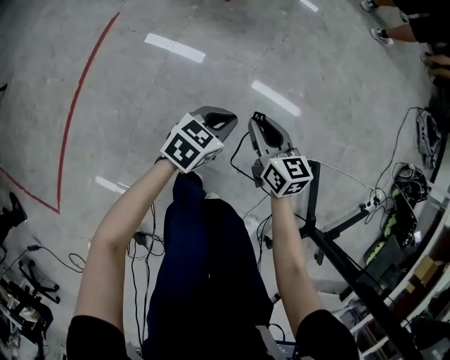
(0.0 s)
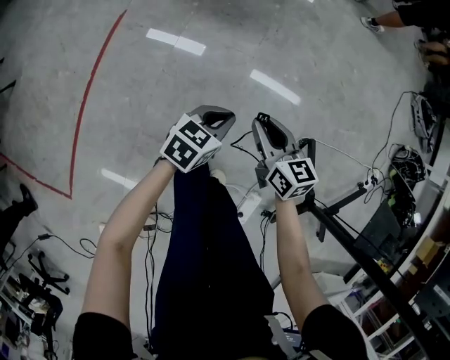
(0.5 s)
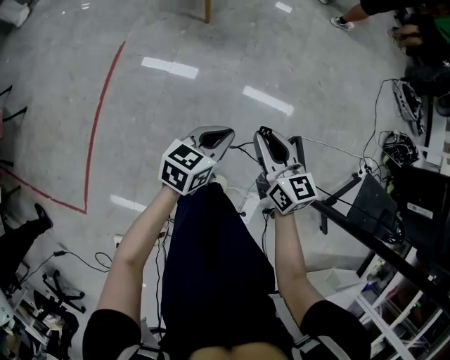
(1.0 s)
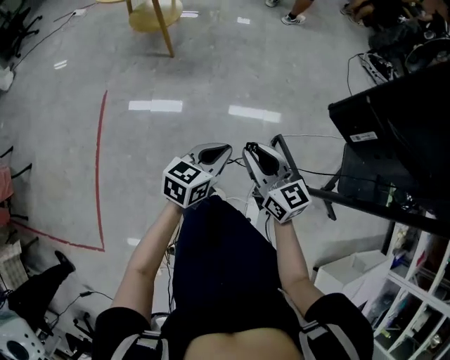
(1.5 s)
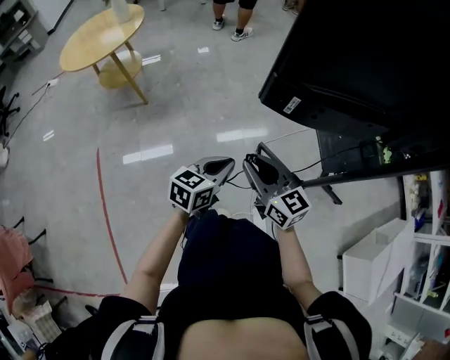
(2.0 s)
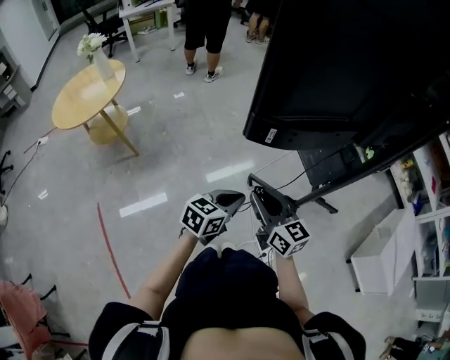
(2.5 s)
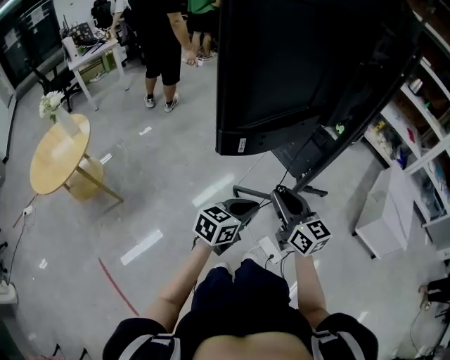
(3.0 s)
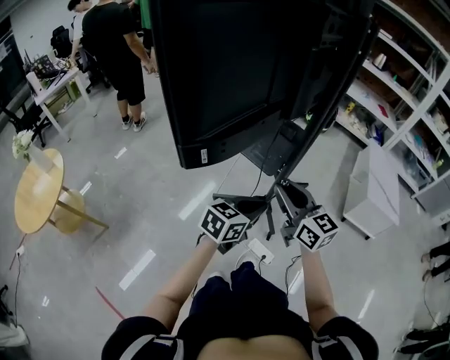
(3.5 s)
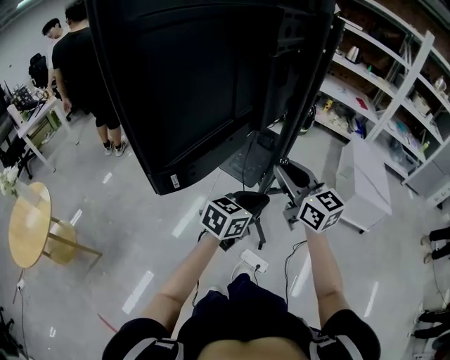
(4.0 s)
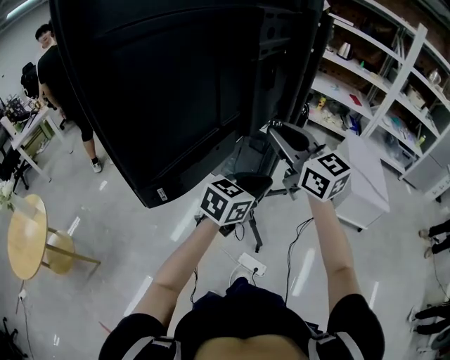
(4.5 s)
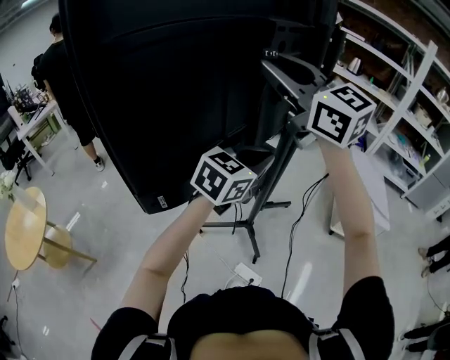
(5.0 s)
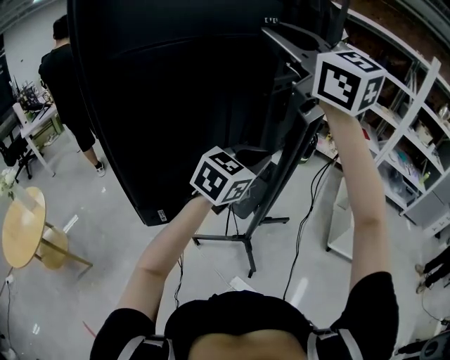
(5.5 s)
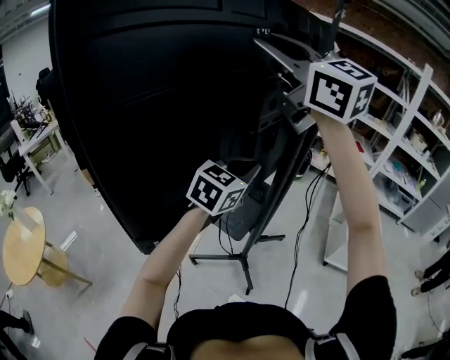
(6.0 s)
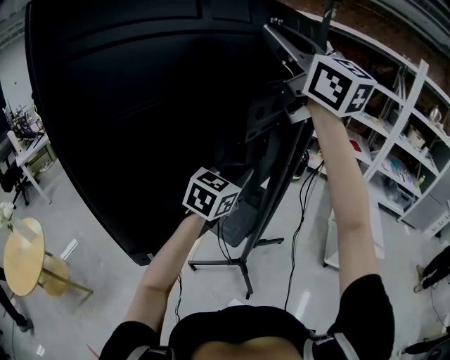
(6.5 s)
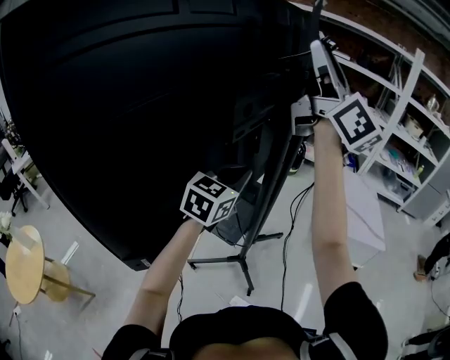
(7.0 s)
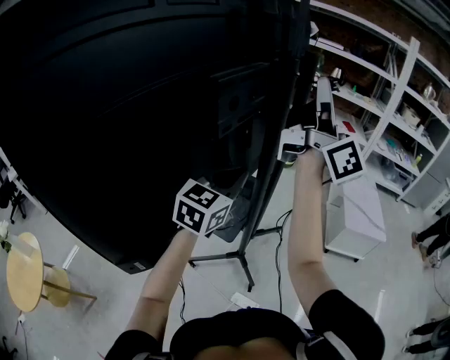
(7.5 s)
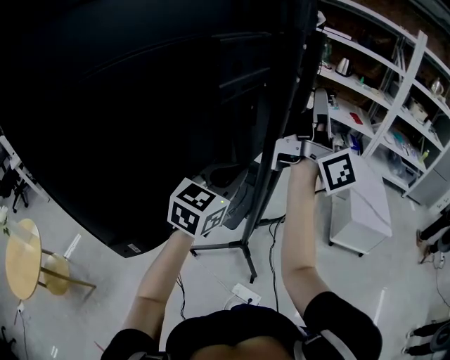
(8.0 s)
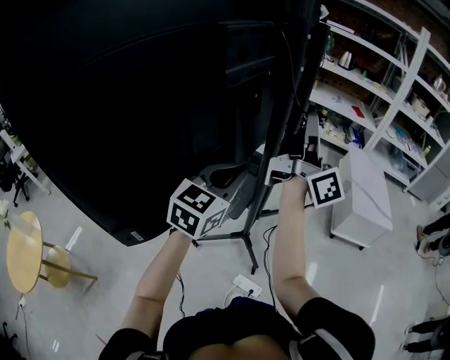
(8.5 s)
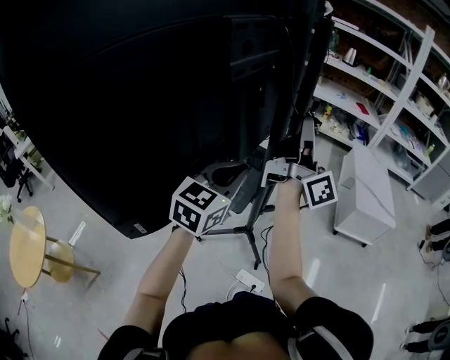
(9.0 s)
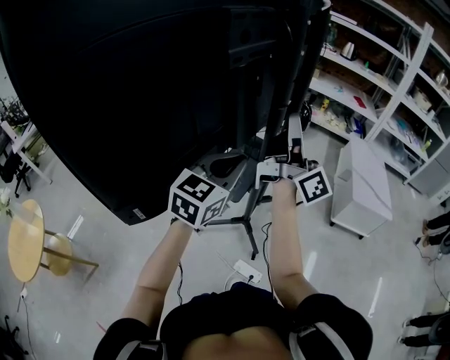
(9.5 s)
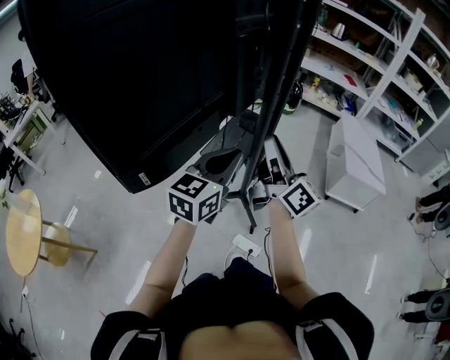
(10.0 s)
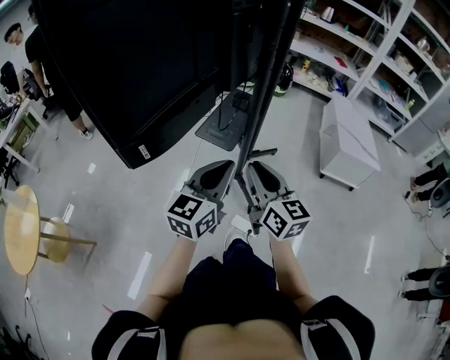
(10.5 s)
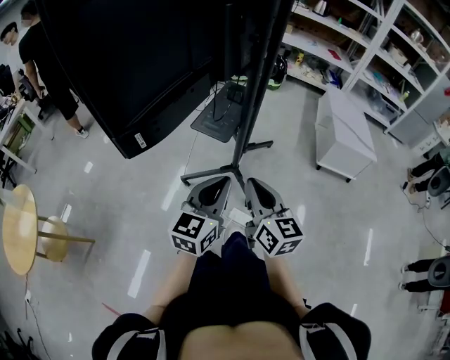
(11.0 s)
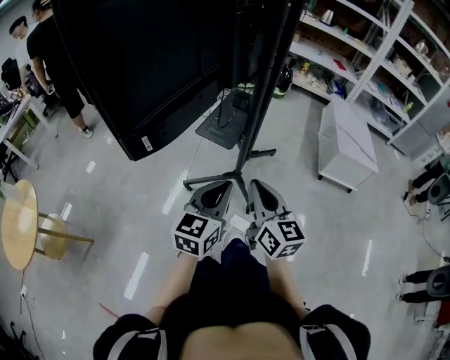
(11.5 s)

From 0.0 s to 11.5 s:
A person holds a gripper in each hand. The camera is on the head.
From 0.0 s to 2.0 s: The right gripper goes roughly 50 cm upward and backward, and rotates approximately 30 degrees; the left gripper moves upward and to the right, about 50 cm, and turns by roughly 30 degrees.
From 2.0 s to 4.0 s: The right gripper ends up roughly 35 cm from where it was, and rotates some 50 degrees; the left gripper moves approximately 35 cm, and rotates approximately 60 degrees.
From 4.0 s to 6.0 s: The right gripper travels upward by roughly 40 cm, and turns by approximately 30 degrees; the left gripper is displaced upward and forward by about 30 cm, and changes its angle by roughly 30 degrees.
From 6.0 s to 7.5 s: The right gripper moves to the right, some 25 cm, and tilts its fingers some 40 degrees upward.
From 7.5 s to 9.5 s: The right gripper shifts approximately 20 cm downward; the left gripper goes roughly 10 cm backward and downward.
From 9.5 s to 11.5 s: Both grippers move backward and downward, approximately 30 cm. The right gripper points its fingers roughly 50 degrees further downward.

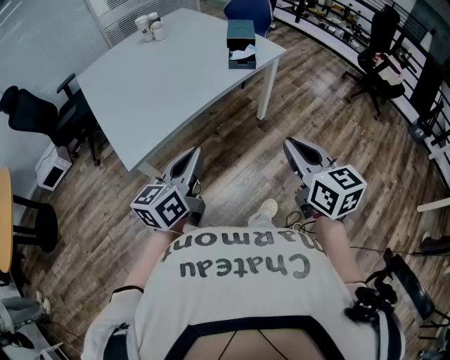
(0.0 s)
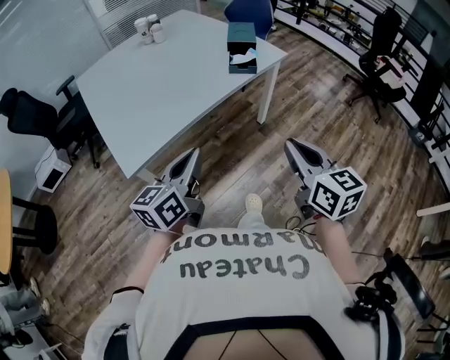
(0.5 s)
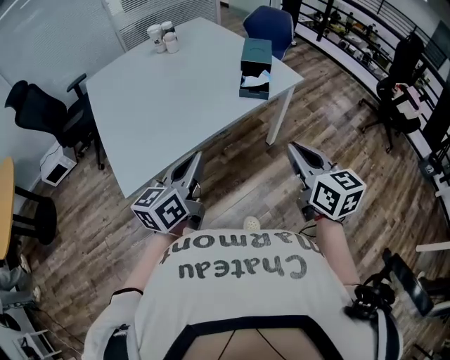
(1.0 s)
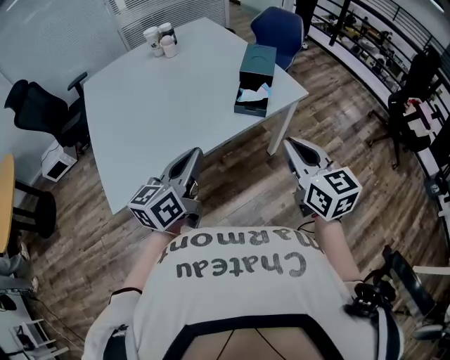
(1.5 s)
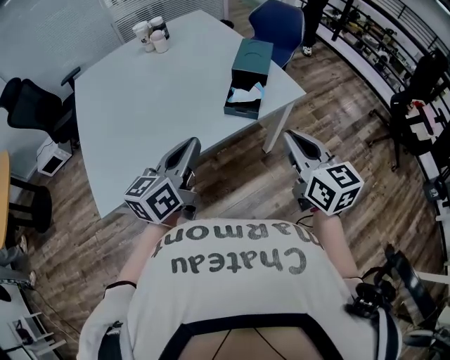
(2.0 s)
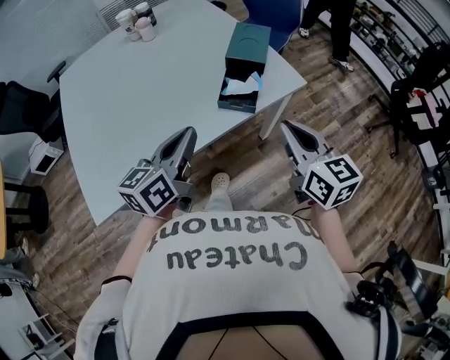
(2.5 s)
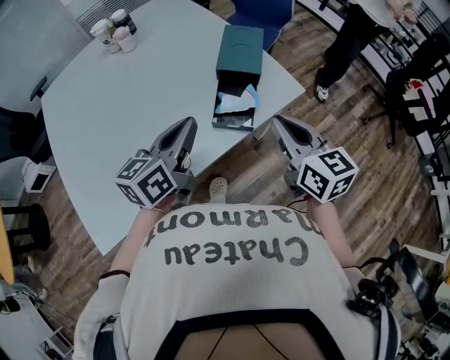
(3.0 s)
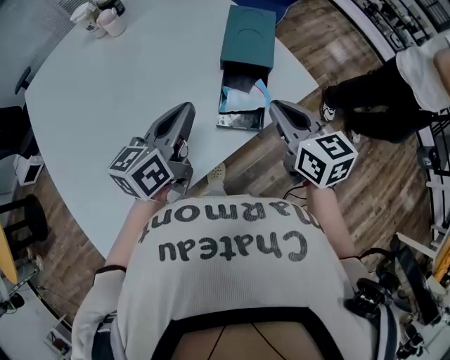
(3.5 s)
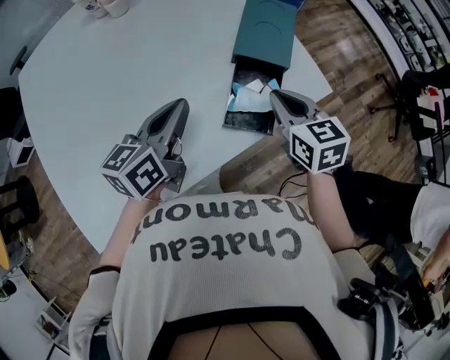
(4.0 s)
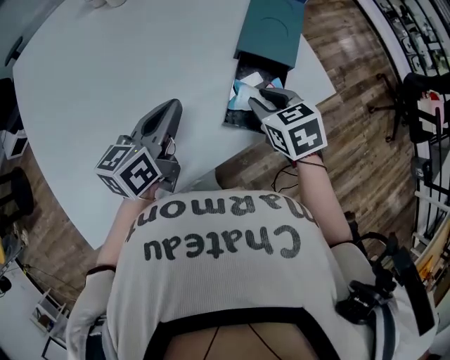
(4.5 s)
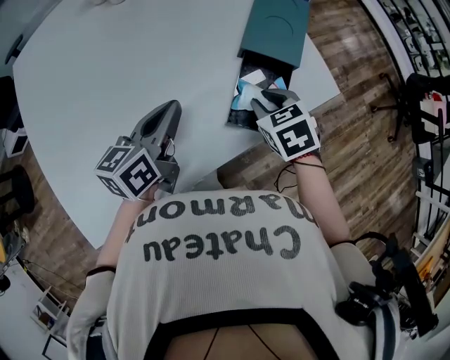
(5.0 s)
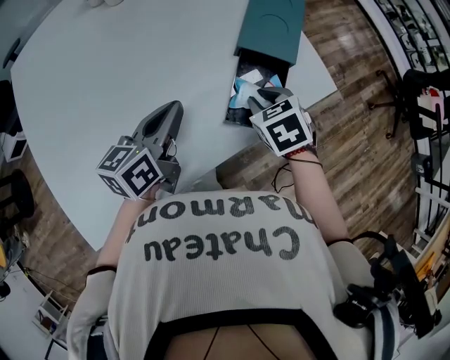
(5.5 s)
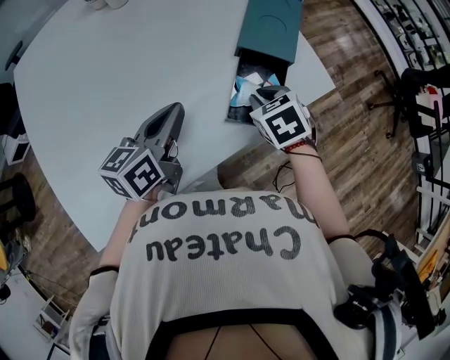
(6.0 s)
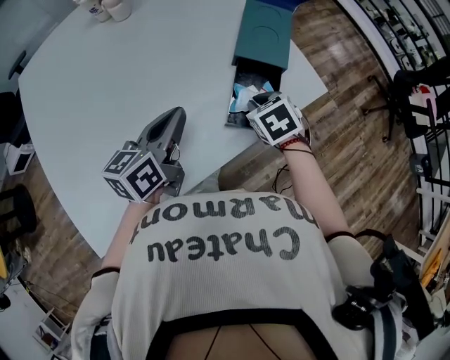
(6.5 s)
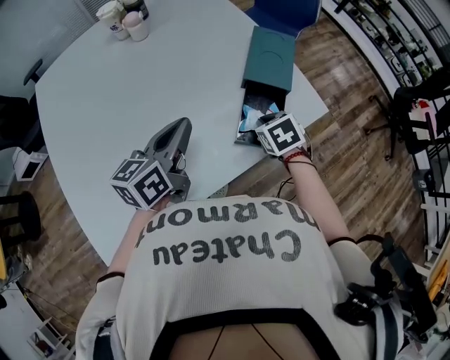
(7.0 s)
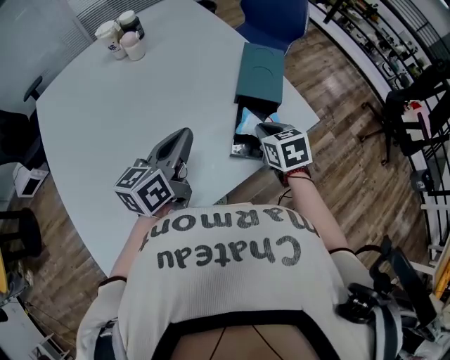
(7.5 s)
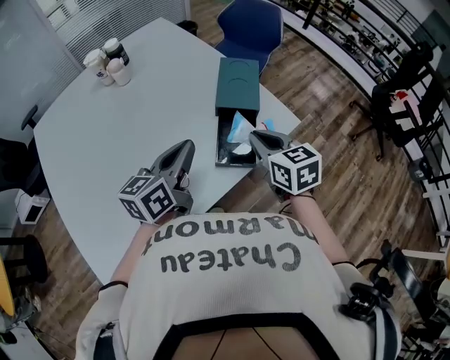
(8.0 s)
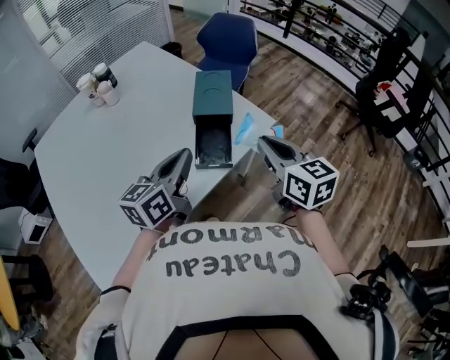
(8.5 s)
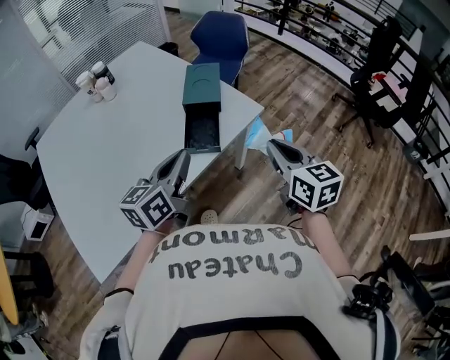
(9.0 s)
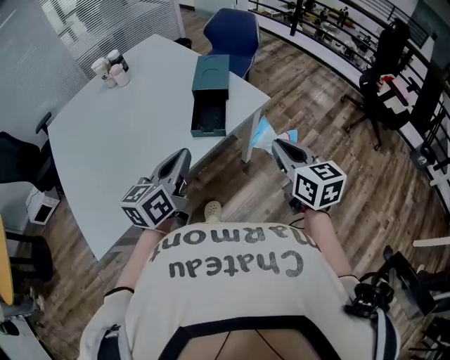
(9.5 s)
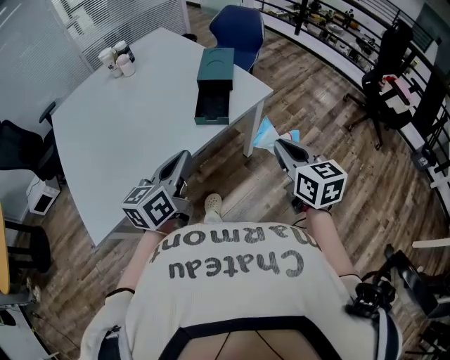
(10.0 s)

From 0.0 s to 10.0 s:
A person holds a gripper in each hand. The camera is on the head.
From 0.0 s to 2.0 s: Both grippers travel together forward, about 30 cm.
From 2.0 s to 4.0 s: The left gripper goes roughly 25 cm forward; the right gripper heads forward and downward, covering about 30 cm, and swivels roughly 20 degrees.
From 4.0 s to 6.0 s: The right gripper goes about 10 cm downward, and rotates about 30 degrees.
From 6.0 s to 8.0 s: The right gripper travels upward by approximately 15 cm, and points its fingers some 30 degrees further upward, while the left gripper goes roughly 10 cm upward and to the right.
From 8.0 s to 10.0 s: The left gripper travels backward by roughly 25 cm. The right gripper moves backward and to the right, roughly 30 cm.

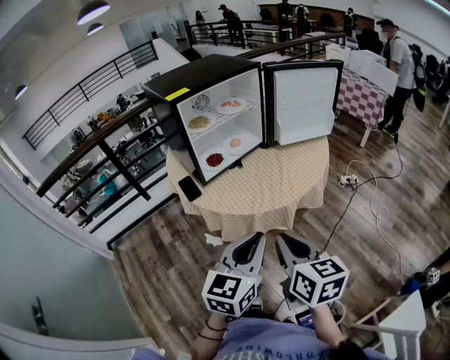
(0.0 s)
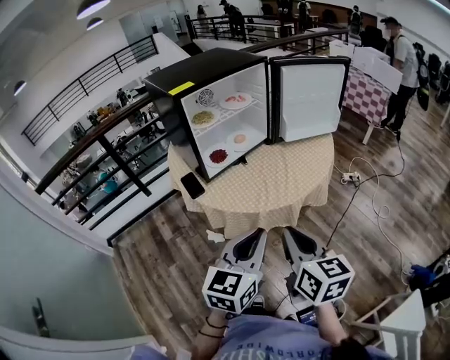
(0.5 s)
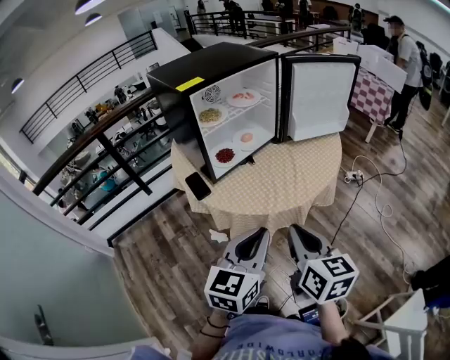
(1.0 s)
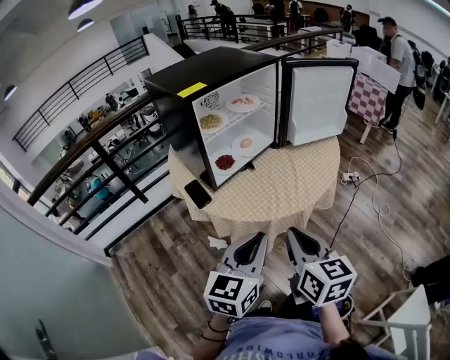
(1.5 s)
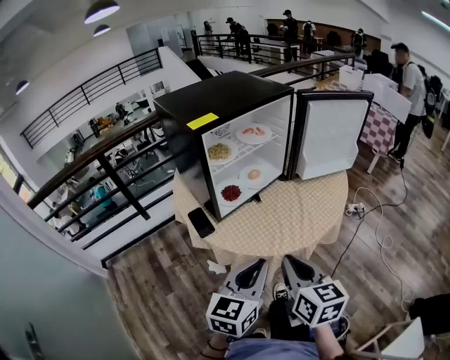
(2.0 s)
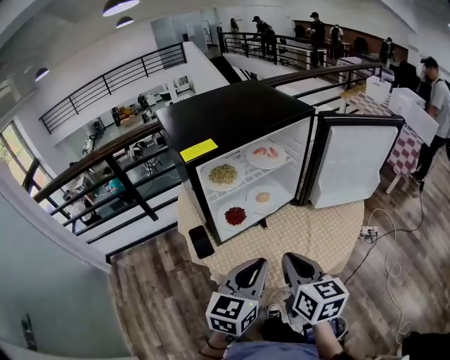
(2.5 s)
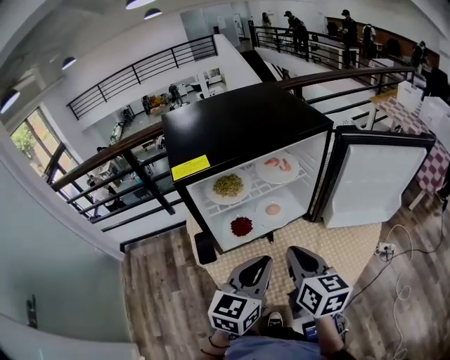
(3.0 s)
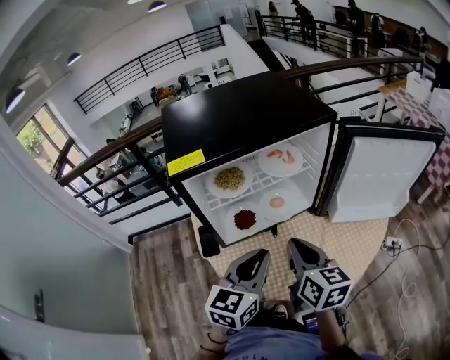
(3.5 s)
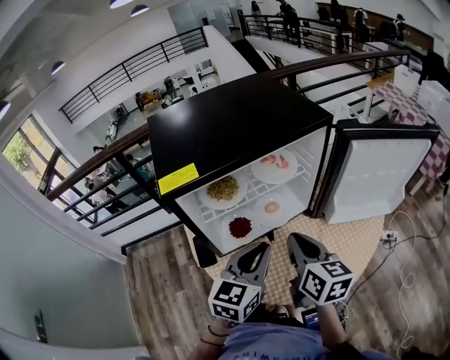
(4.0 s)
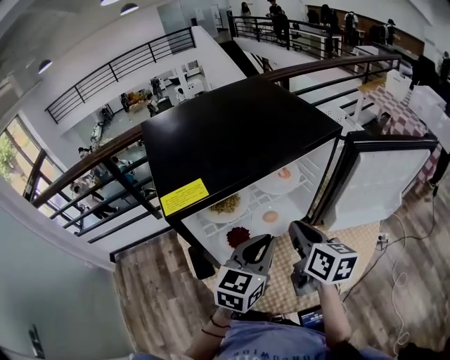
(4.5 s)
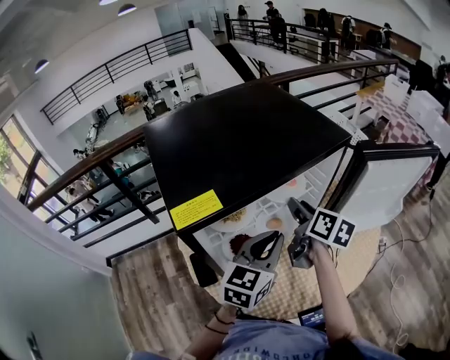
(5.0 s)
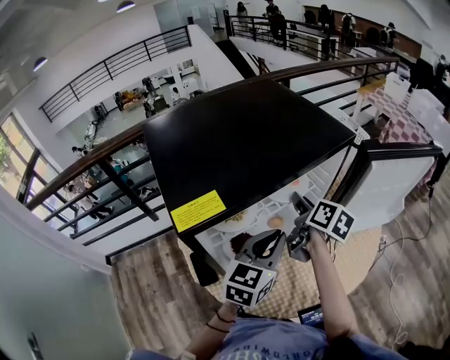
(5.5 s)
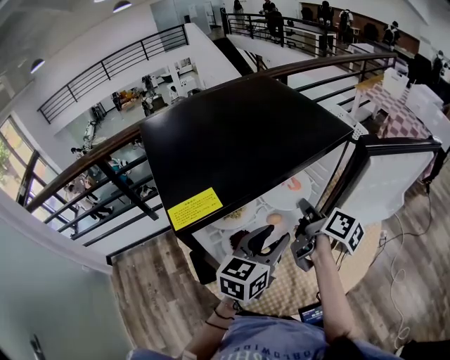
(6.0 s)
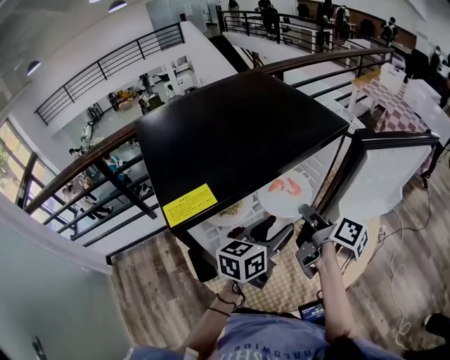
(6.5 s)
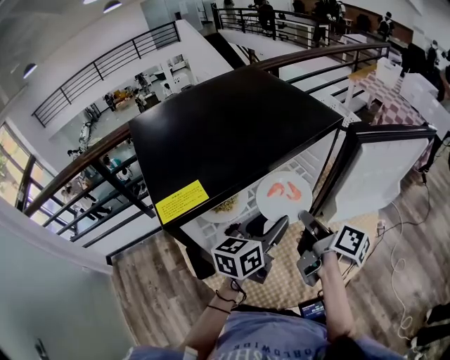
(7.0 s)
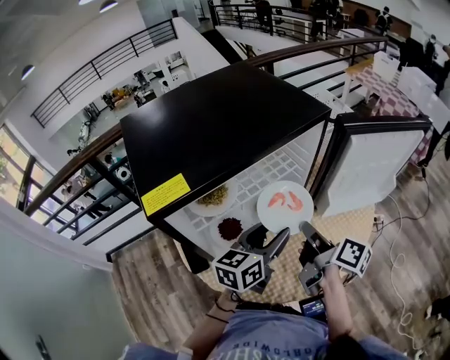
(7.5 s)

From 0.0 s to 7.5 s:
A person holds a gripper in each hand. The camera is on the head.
From 0.0 s to 2.0 s: Both grippers travel together forward and to the left, some 15 cm.
From 2.0 s to 4.0 s: Both grippers travel together forward, roughly 25 cm.
From 4.0 s to 5.5 s: The left gripper heads forward, covering roughly 10 cm. The right gripper travels forward by approximately 20 cm, changes its angle by some 30 degrees, and opens up.
From 5.5 s to 7.5 s: The left gripper shifts by about 5 cm, turns by about 20 degrees, and opens. Meanwhile the right gripper shifts approximately 15 cm backward and to the right, rotates some 20 degrees, and closes up.
